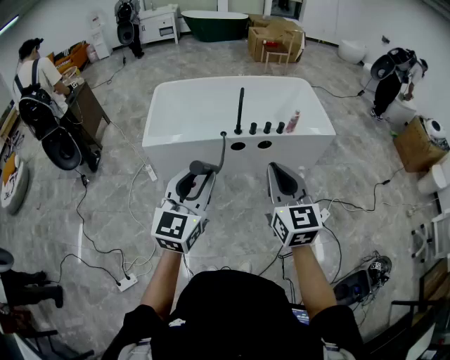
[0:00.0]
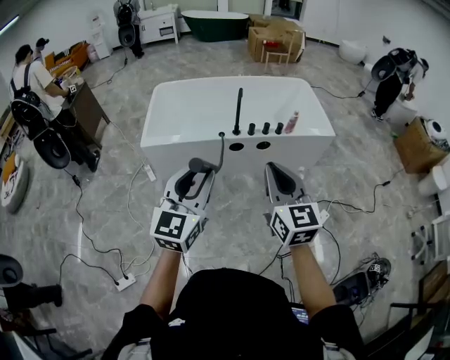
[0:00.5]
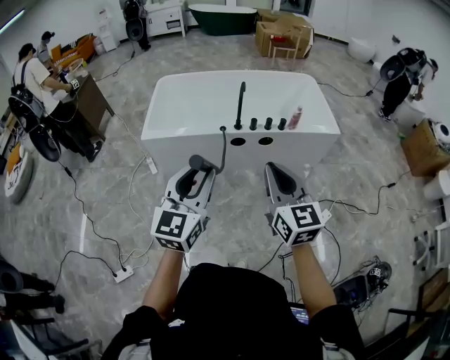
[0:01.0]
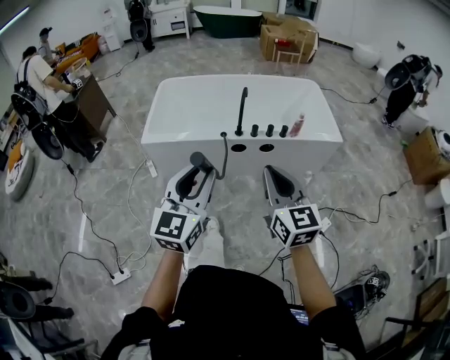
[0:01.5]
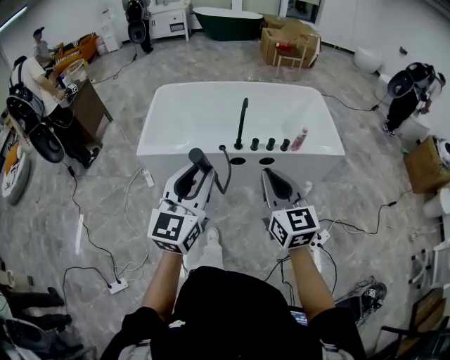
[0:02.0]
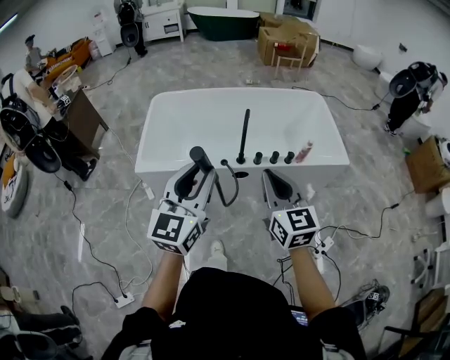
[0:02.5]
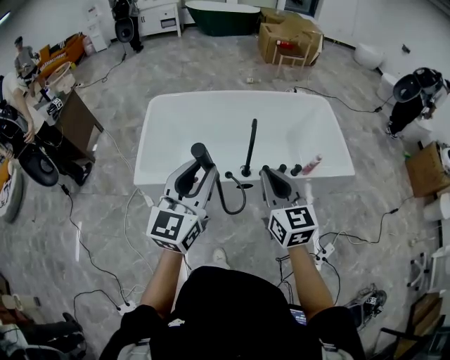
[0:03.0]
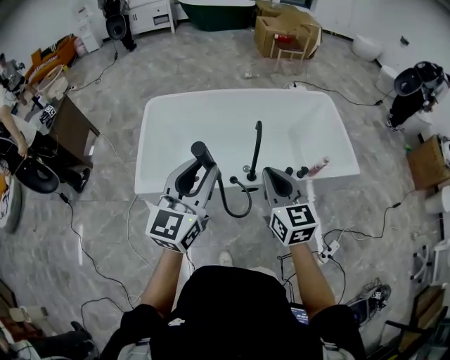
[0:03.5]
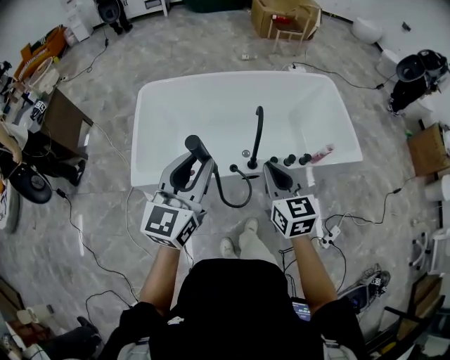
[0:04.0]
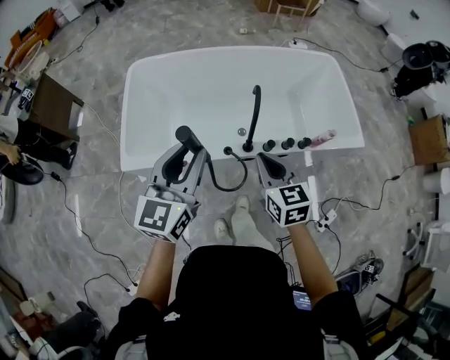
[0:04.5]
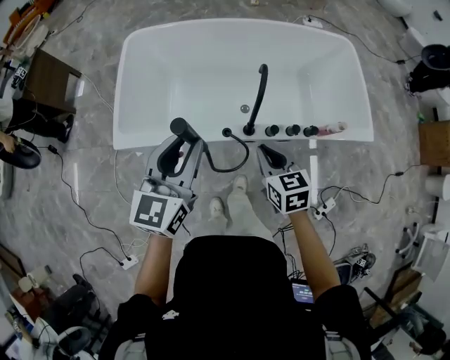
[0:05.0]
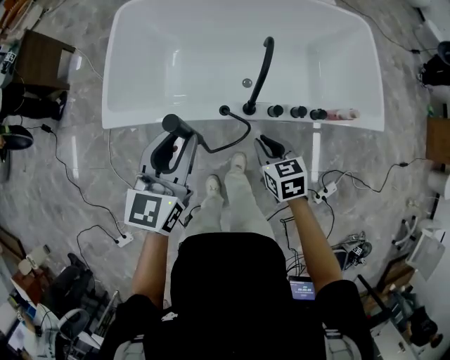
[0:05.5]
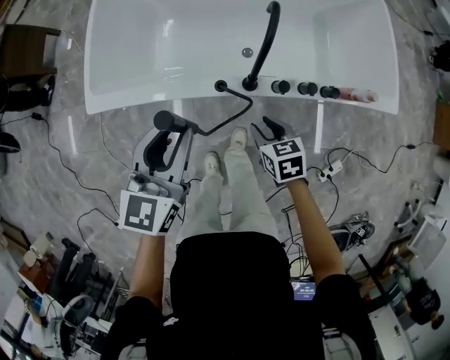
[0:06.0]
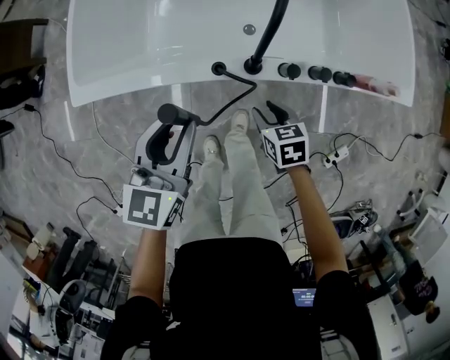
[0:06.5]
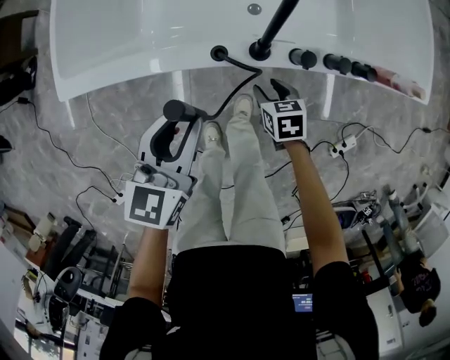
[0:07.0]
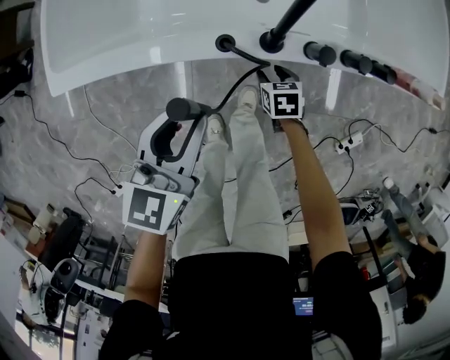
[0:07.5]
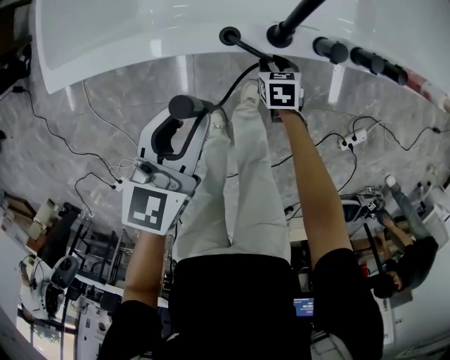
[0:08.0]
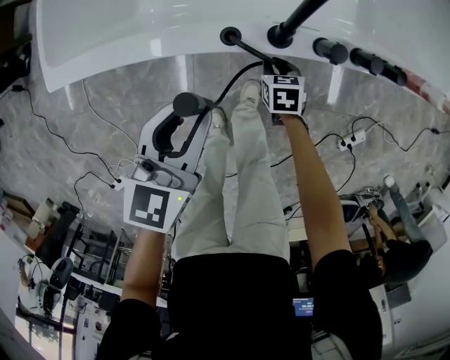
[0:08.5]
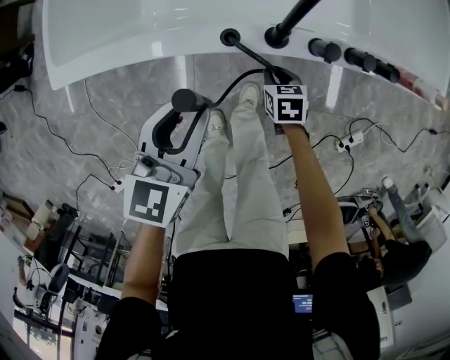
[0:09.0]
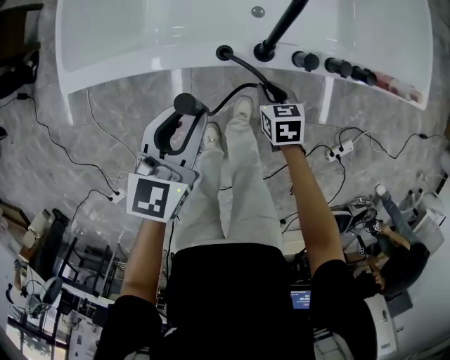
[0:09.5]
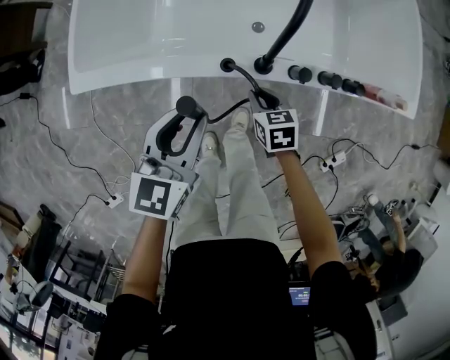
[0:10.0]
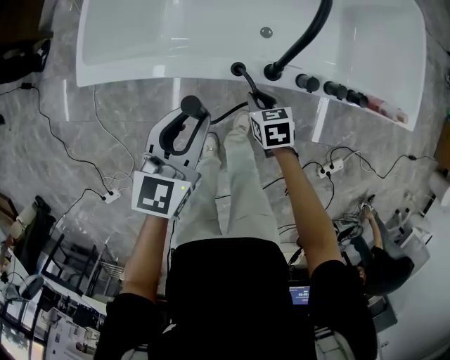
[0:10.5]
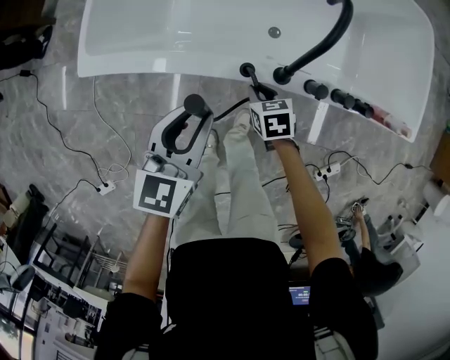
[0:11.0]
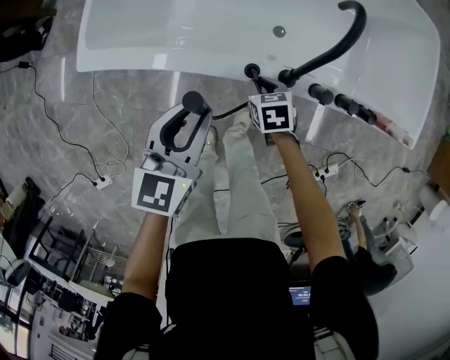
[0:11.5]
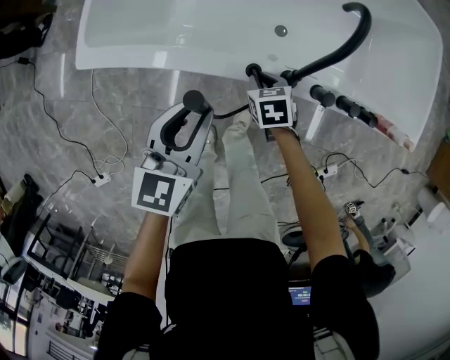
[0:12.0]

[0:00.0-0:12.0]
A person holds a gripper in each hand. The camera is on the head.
0:00.0 to 0:02.0: Both grippers travel together forward, roughly 15 cm.
0:02.0 to 0:04.0: Both grippers move forward, approximately 35 cm.
0:04.0 to 0:06.0: Both grippers travel together downward, approximately 30 cm. The right gripper tilts its fingers approximately 40 degrees downward, and opens up. The left gripper turns by some 20 degrees.
0:06.0 to 0:08.0: Both grippers travel together downward, roughly 25 cm.
0:08.0 to 0:10.0: The right gripper goes about 20 cm upward, while the left gripper is displaced upward by about 10 cm.
0:10.0 to 0:12.0: The right gripper travels forward and to the left by approximately 10 cm; the left gripper shifts approximately 5 cm to the left.

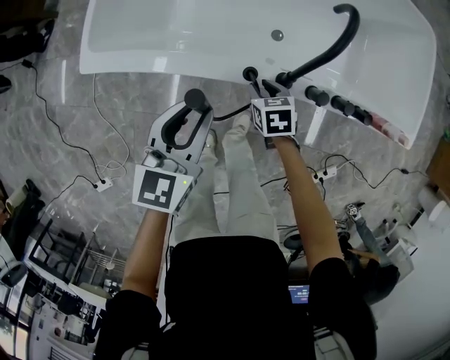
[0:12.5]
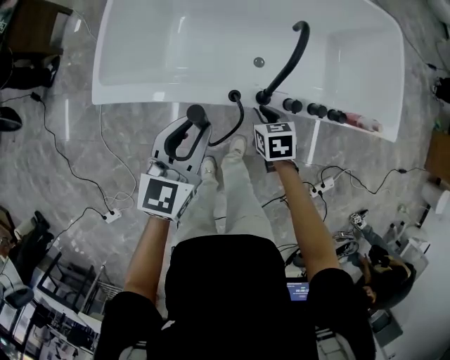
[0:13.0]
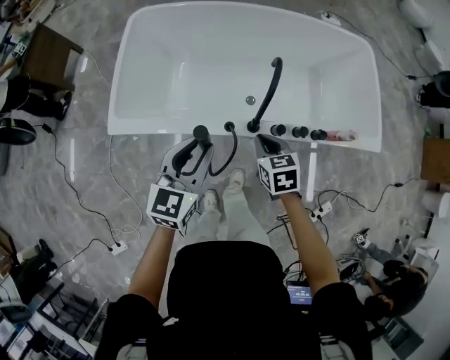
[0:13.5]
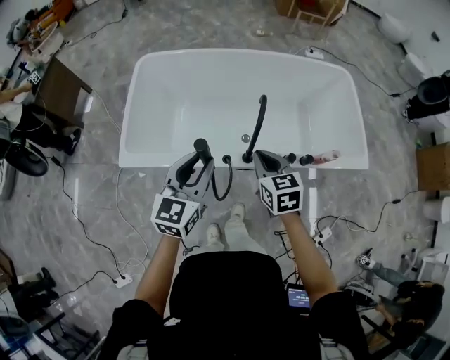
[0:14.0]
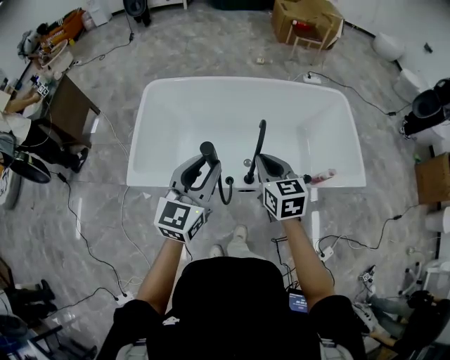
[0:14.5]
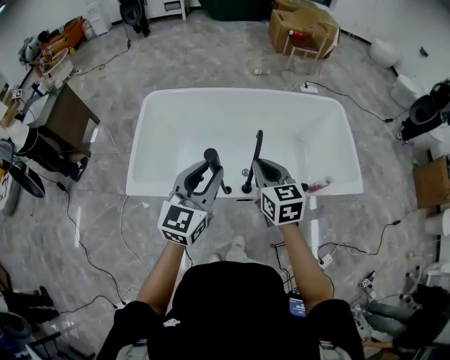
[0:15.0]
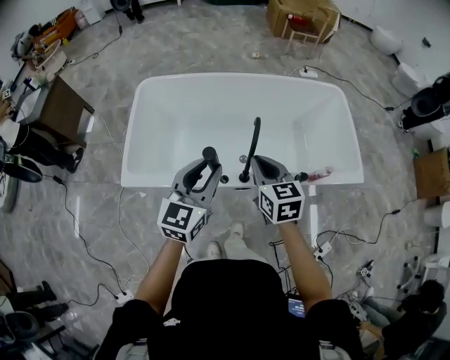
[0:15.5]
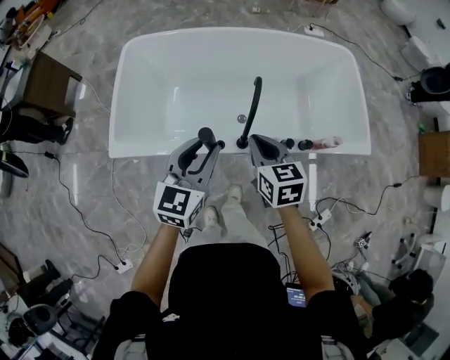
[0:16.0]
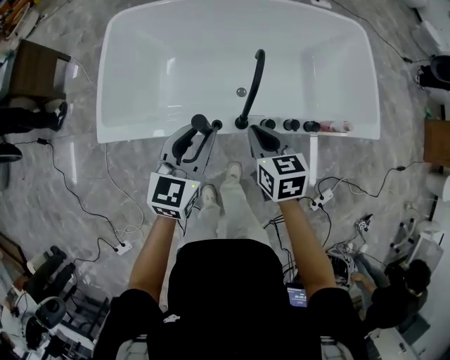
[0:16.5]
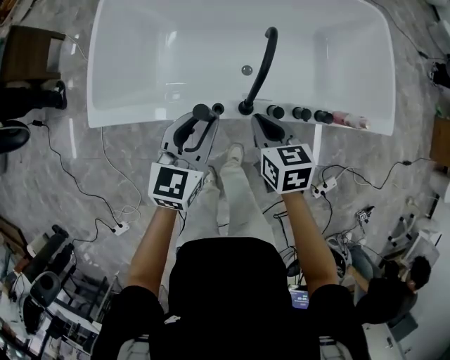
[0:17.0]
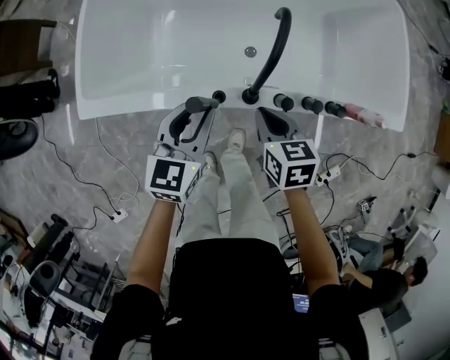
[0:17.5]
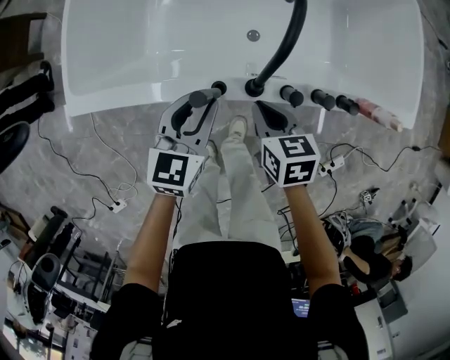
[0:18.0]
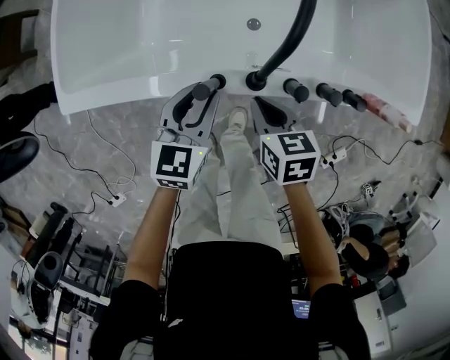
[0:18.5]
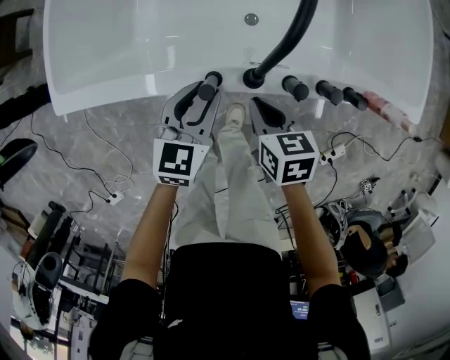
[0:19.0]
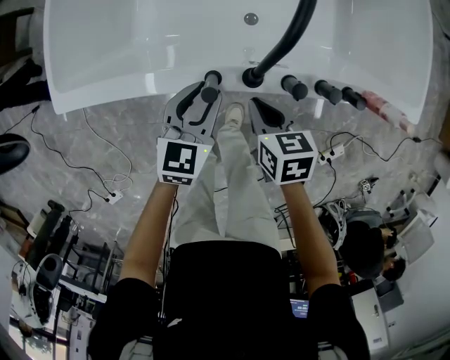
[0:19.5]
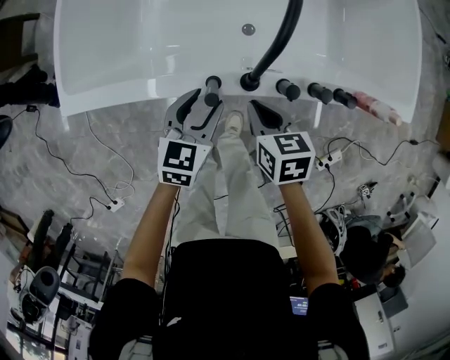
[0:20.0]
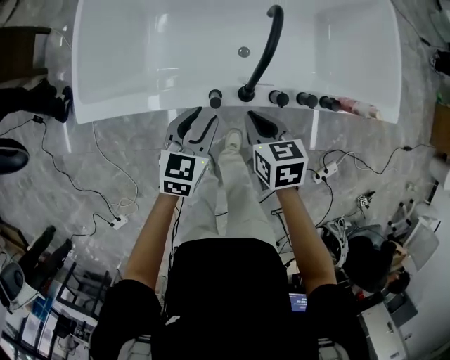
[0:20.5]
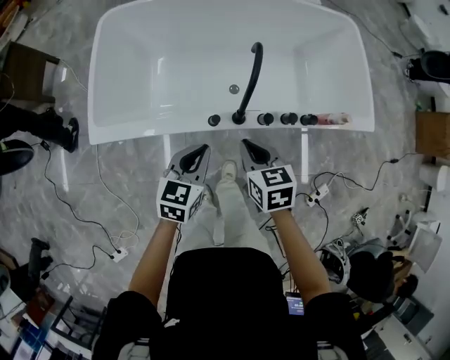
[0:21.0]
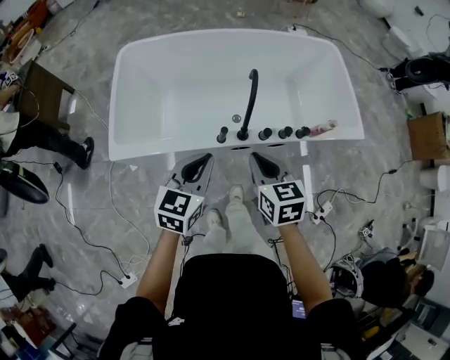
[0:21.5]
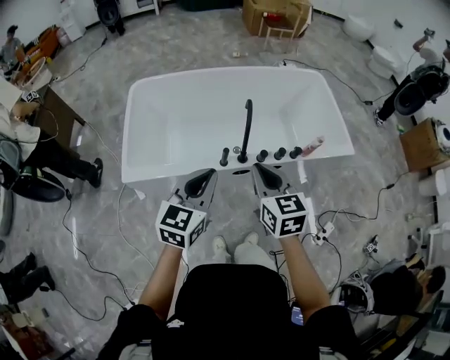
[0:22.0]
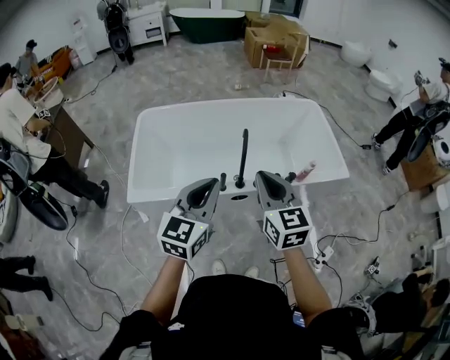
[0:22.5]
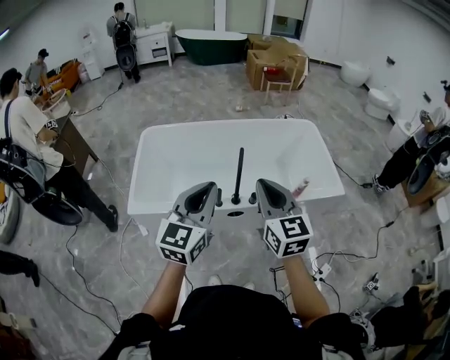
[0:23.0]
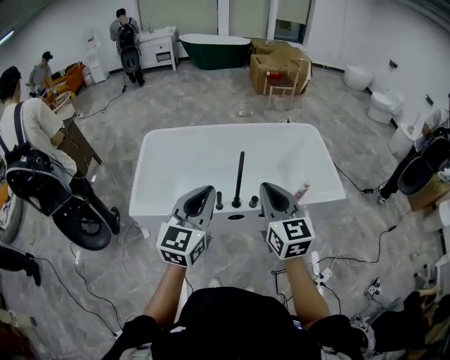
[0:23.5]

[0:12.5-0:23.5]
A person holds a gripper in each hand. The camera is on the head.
0:12.5 to 0:14.5: Both grippers travel together upward, approximately 40 cm. The right gripper tips its fingers upward by about 40 degrees, and closes up; the left gripper swivels approximately 30 degrees.
0:14.5 to 0:16.0: Both grippers travel together downward, about 10 cm.
0:16.0 to 0:18.0: The grippers both shift downward by about 30 cm. The right gripper changes its angle by approximately 20 degrees.
0:18.0 to 0:20.0: The left gripper goes about 5 cm downward.
0:20.0 to 0:21.5: Both grippers travel together upward, roughly 30 cm. The left gripper closes, while the right gripper rotates roughly 20 degrees.
0:21.5 to 0:23.5: Both grippers travel together upward, approximately 25 cm. The right gripper turns by approximately 30 degrees, while the left gripper changes its angle by about 20 degrees.

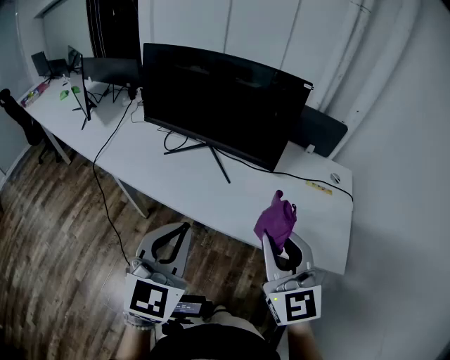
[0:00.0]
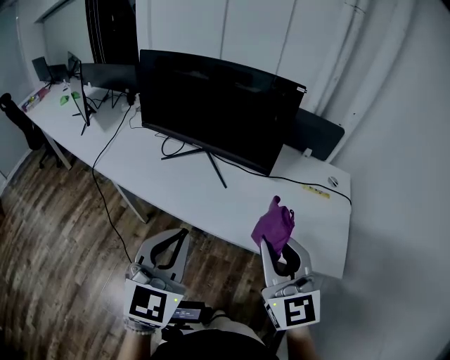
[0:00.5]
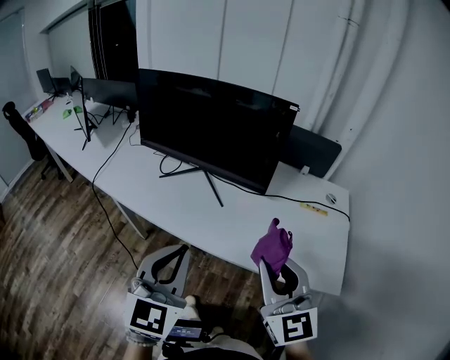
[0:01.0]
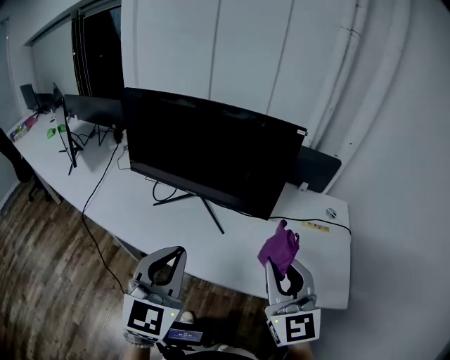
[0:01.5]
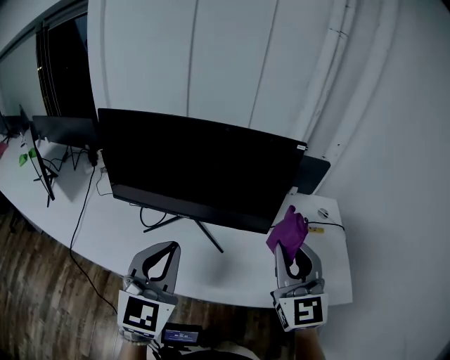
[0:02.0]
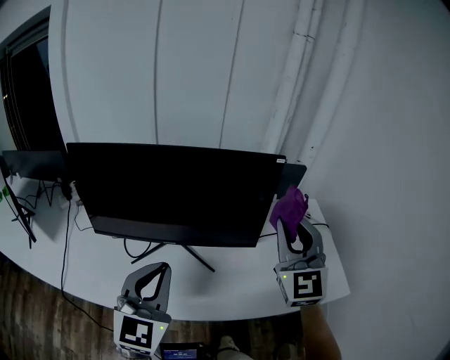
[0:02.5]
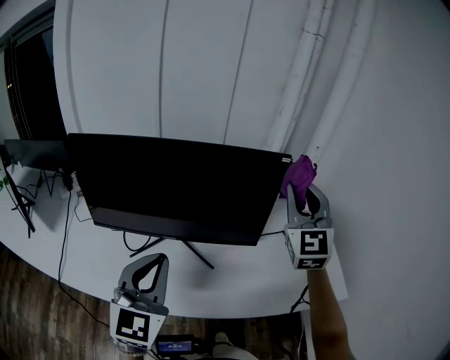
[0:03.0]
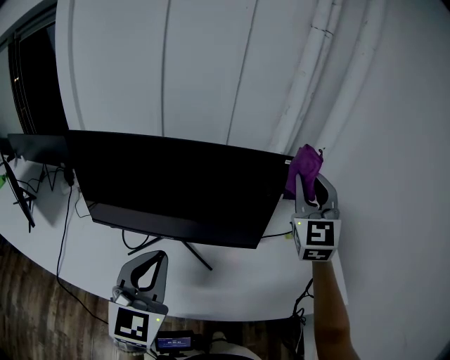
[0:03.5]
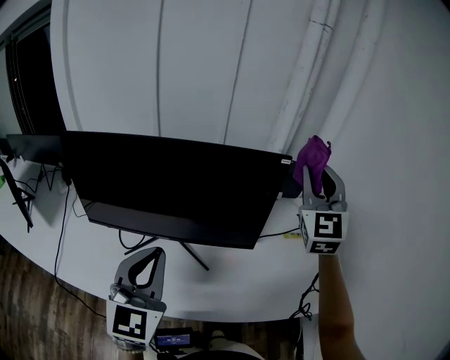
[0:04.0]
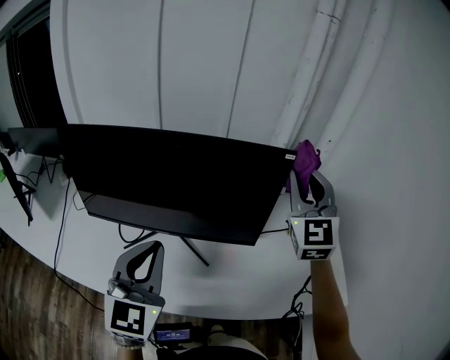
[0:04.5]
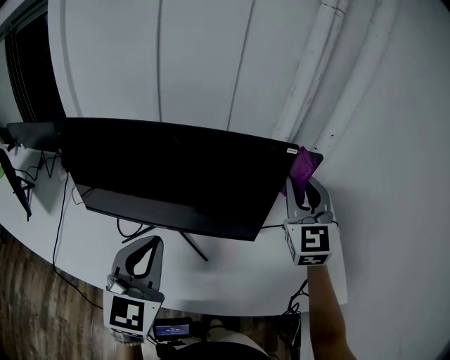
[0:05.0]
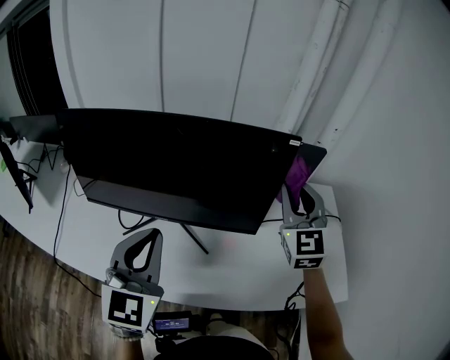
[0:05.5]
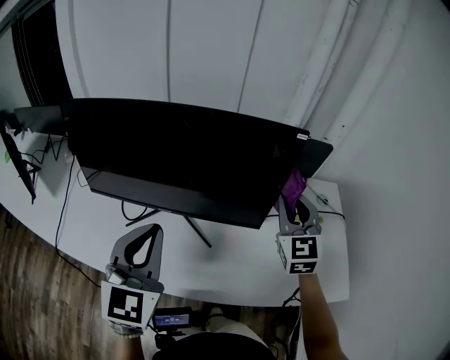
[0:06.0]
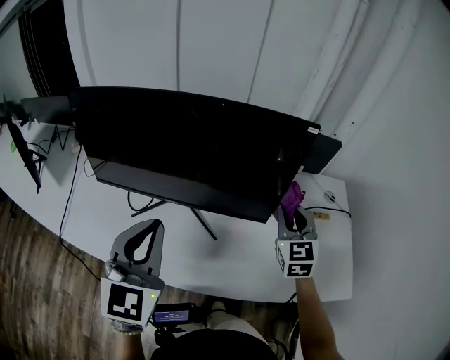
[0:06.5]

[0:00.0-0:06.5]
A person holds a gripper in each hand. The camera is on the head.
0:00.0 to 0:02.0: The grippers both shift forward by about 20 cm. The right gripper changes its angle by approximately 20 degrees.
0:02.0 to 0:04.5: The right gripper goes roughly 20 cm forward; the left gripper goes approximately 10 cm forward.
0:04.5 to 0:06.5: The right gripper goes approximately 20 cm downward, and rotates roughly 20 degrees.
